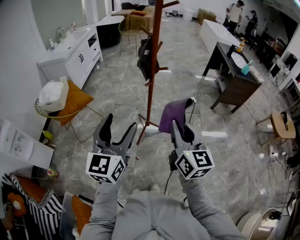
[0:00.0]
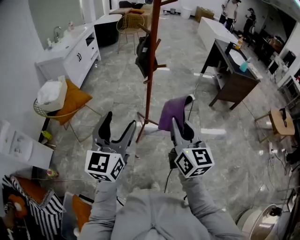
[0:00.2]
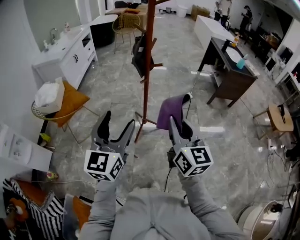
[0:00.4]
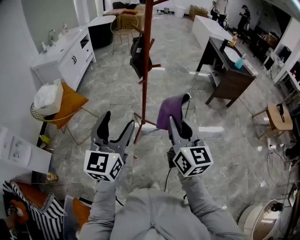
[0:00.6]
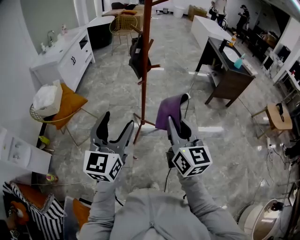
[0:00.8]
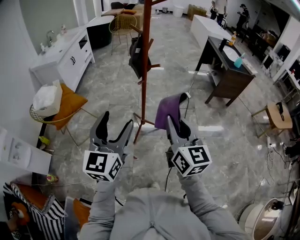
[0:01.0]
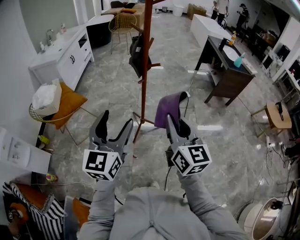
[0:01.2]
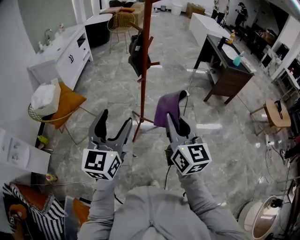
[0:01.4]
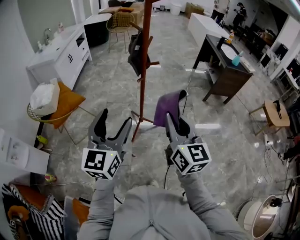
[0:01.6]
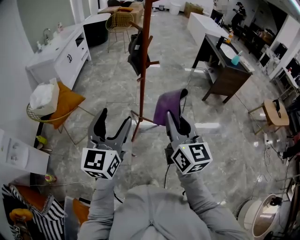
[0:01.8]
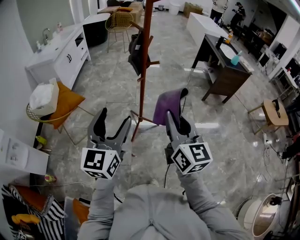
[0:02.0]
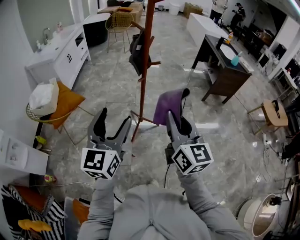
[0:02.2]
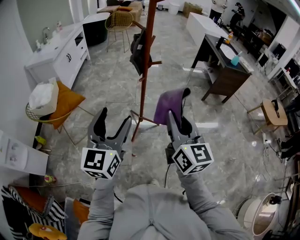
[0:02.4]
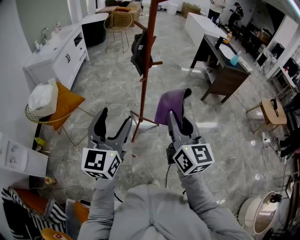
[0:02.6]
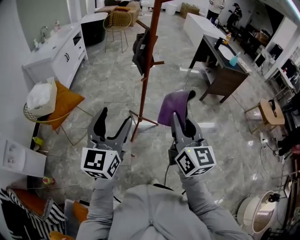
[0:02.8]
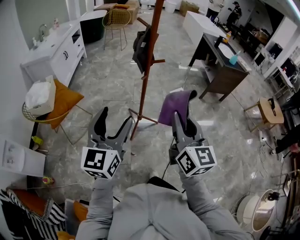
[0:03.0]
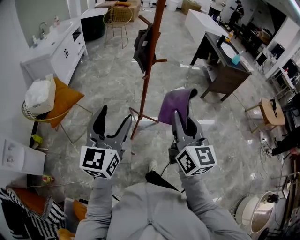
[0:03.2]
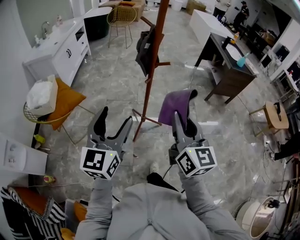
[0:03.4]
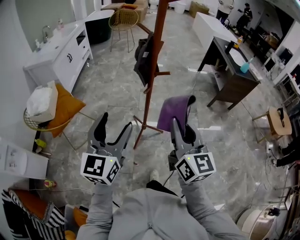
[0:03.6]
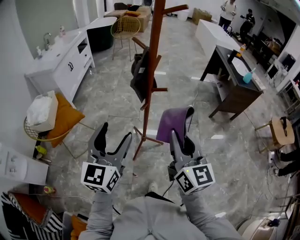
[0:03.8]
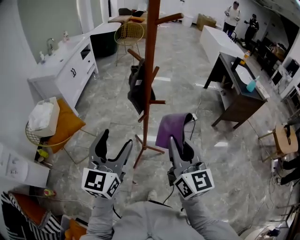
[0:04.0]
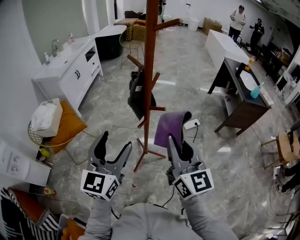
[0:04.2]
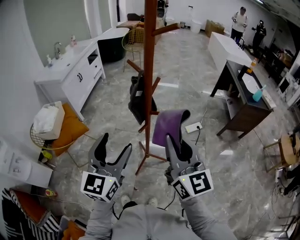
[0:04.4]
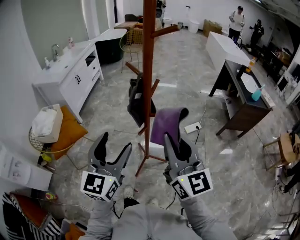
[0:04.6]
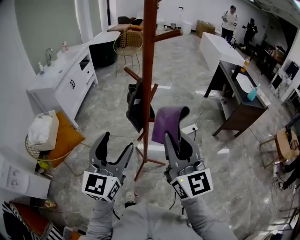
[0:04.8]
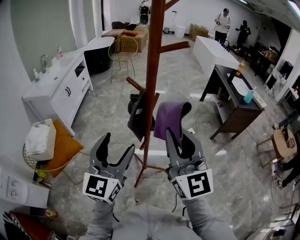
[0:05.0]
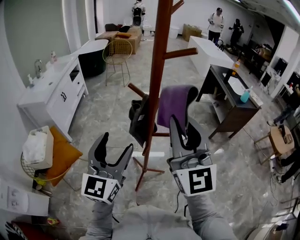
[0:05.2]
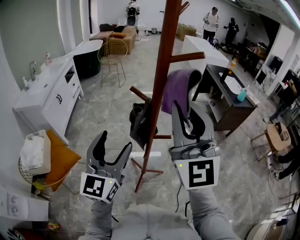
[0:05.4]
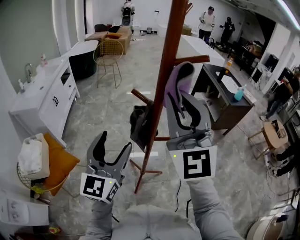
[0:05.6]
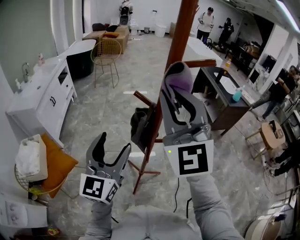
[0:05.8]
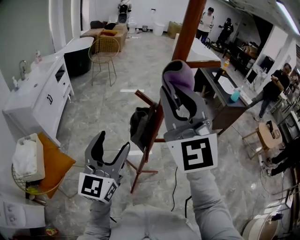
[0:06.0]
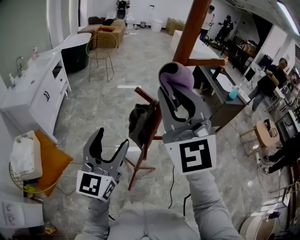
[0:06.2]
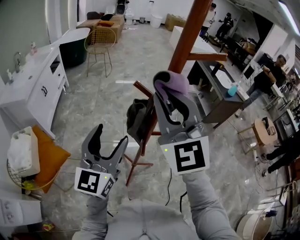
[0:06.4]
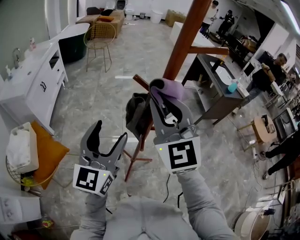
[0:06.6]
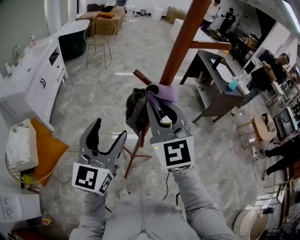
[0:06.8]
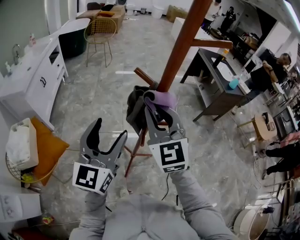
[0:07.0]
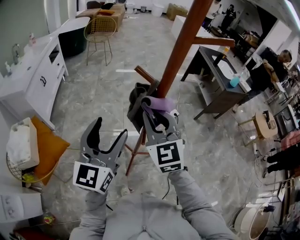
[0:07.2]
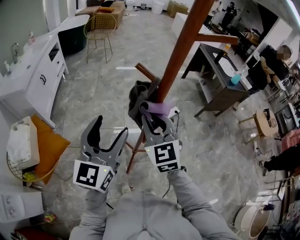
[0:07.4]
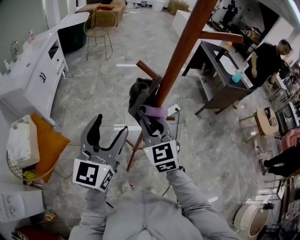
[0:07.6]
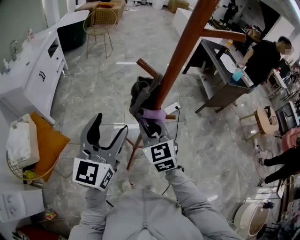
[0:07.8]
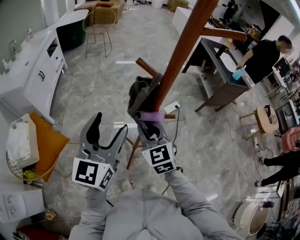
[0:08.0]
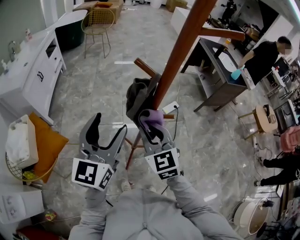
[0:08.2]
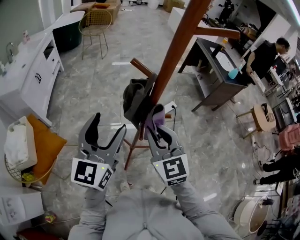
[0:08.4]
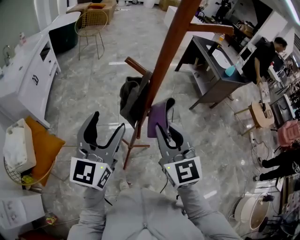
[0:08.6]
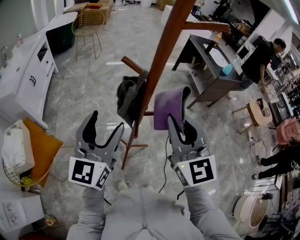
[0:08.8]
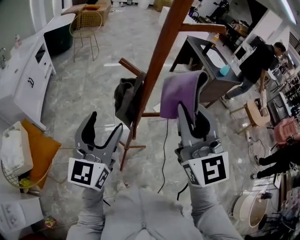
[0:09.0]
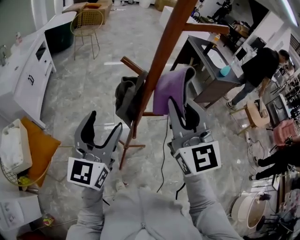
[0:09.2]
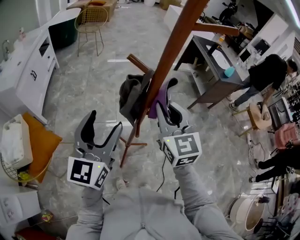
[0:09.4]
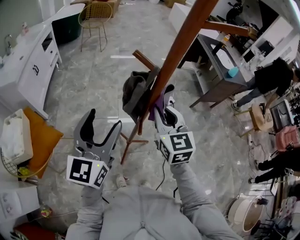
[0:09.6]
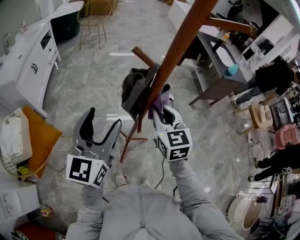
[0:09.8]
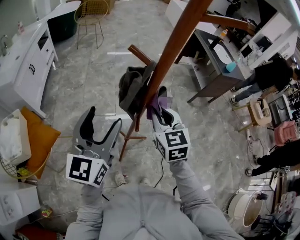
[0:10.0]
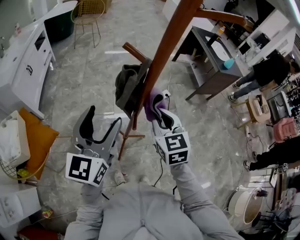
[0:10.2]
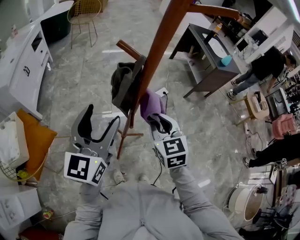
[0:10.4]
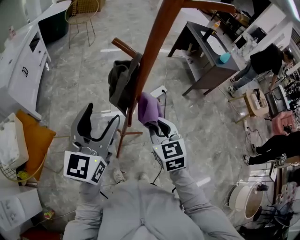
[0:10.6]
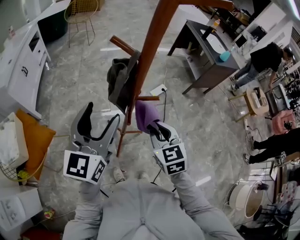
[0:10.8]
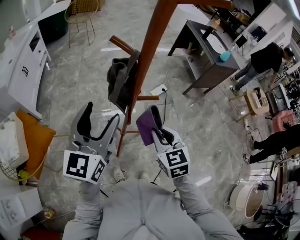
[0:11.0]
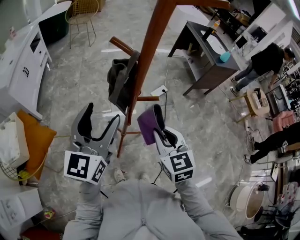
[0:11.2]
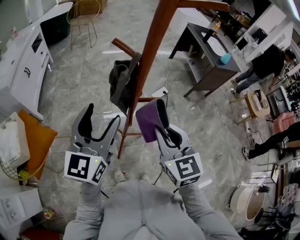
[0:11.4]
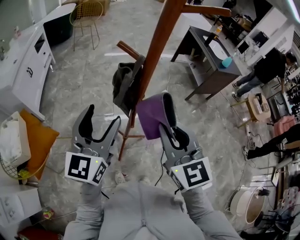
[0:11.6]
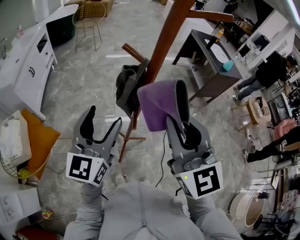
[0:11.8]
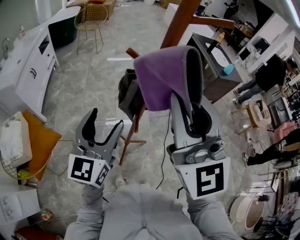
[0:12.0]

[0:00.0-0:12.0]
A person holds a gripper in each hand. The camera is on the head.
0:00.0 to 0:01.6: The grippers stay close to where they were, moving slightly.
0:01.6 to 0:03.0: The left gripper changes place by roughly 5 cm.
0:03.0 to 0:04.4: Both grippers move forward, approximately 20 cm.
0:04.4 to 0:06.0: The left gripper shifts roughly 15 cm forward and to the left; the right gripper moves forward, upward and to the left, roughly 25 cm, and rolls counterclockwise, seen from behind, by approximately 40 degrees.
0:06.0 to 0:07.6: The right gripper shifts roughly 30 cm downward, and swivels some 30 degrees.
0:07.6 to 0:09.0: The right gripper goes about 20 cm upward and to the right, and turns by roughly 30 degrees.
0:09.0 to 0:10.4: The right gripper heads downward, covering roughly 25 cm, and points its fingers some 30 degrees further downward.
0:10.4 to 0:12.0: The right gripper heads upward, covering about 30 cm, and tips its fingers upward by approximately 40 degrees.

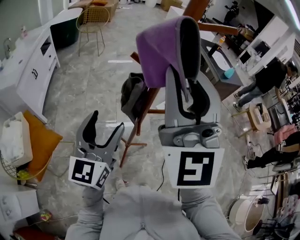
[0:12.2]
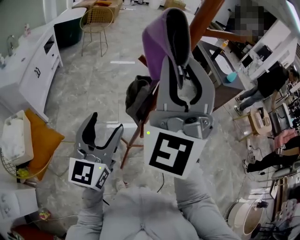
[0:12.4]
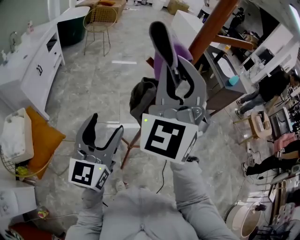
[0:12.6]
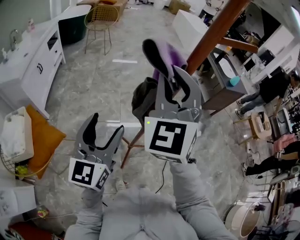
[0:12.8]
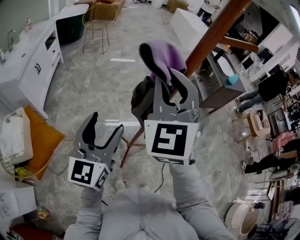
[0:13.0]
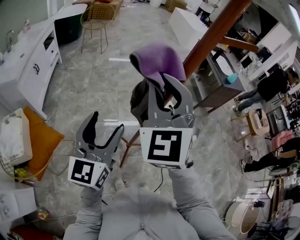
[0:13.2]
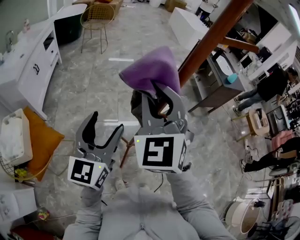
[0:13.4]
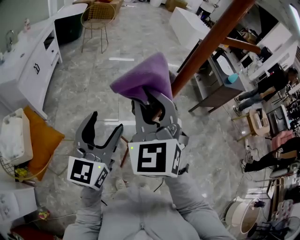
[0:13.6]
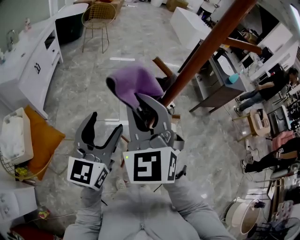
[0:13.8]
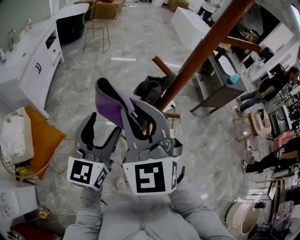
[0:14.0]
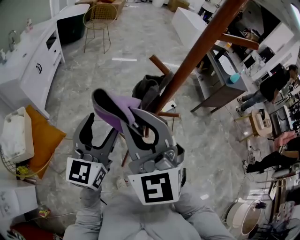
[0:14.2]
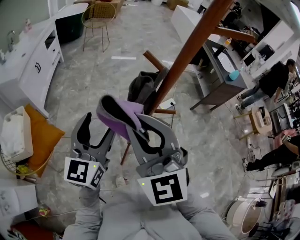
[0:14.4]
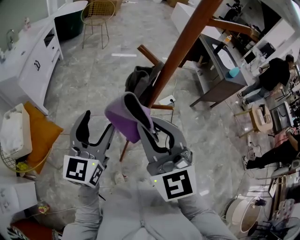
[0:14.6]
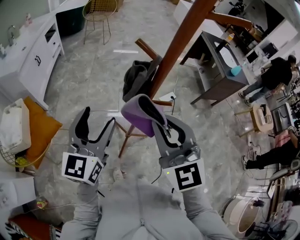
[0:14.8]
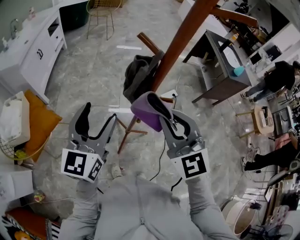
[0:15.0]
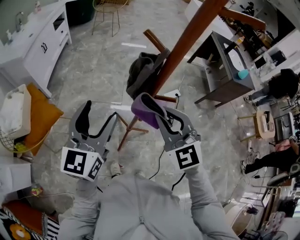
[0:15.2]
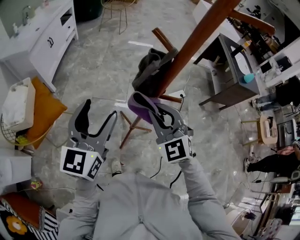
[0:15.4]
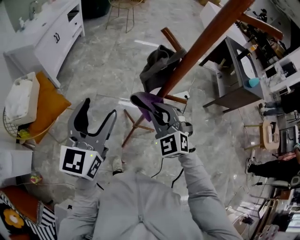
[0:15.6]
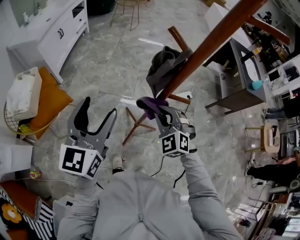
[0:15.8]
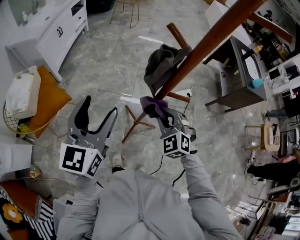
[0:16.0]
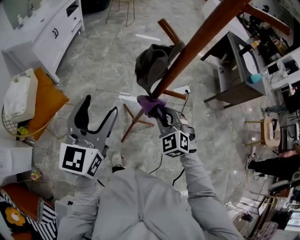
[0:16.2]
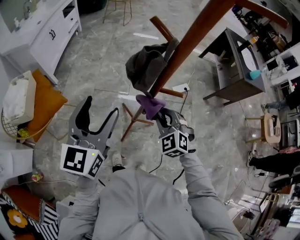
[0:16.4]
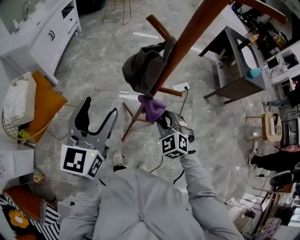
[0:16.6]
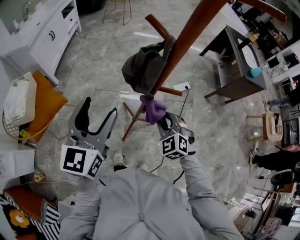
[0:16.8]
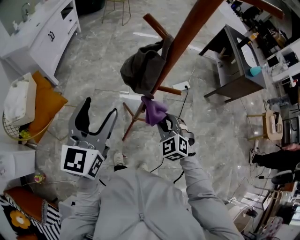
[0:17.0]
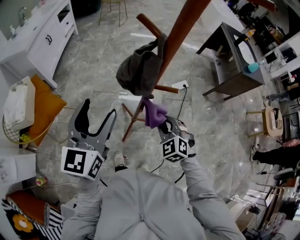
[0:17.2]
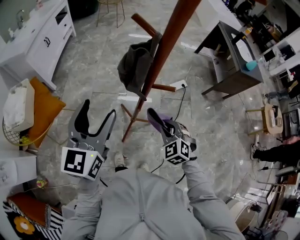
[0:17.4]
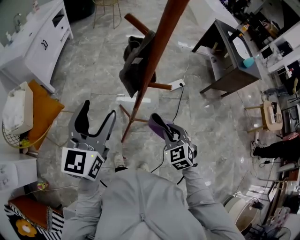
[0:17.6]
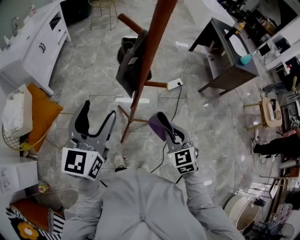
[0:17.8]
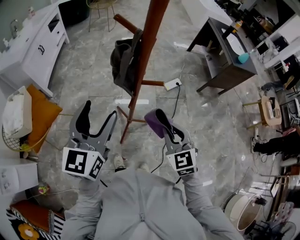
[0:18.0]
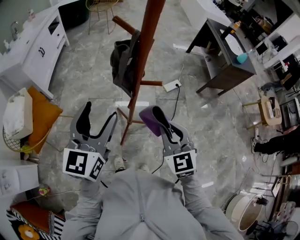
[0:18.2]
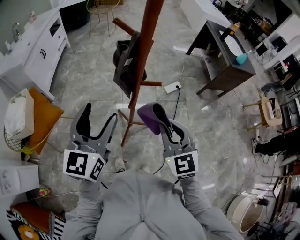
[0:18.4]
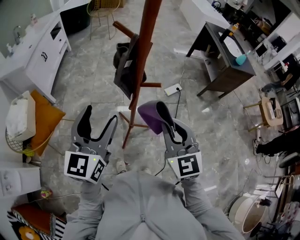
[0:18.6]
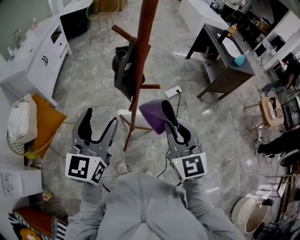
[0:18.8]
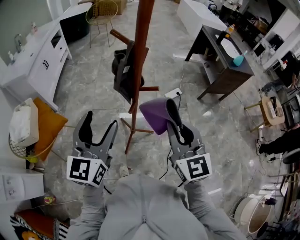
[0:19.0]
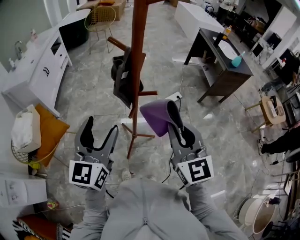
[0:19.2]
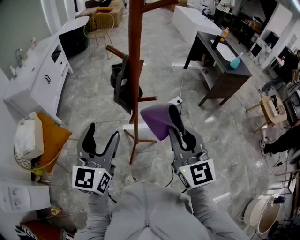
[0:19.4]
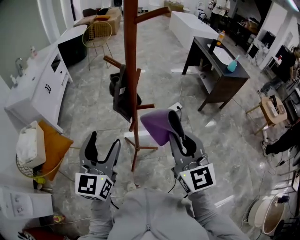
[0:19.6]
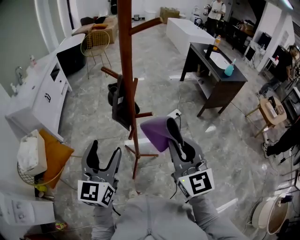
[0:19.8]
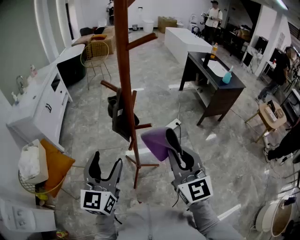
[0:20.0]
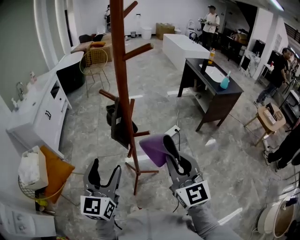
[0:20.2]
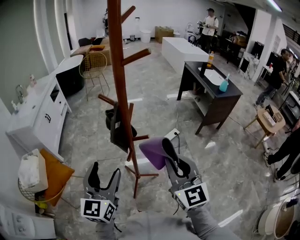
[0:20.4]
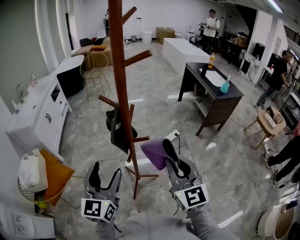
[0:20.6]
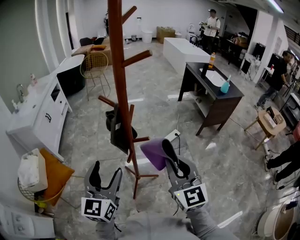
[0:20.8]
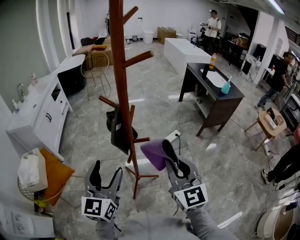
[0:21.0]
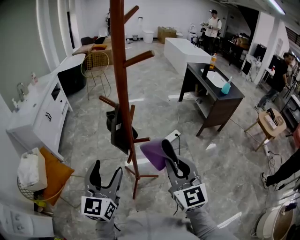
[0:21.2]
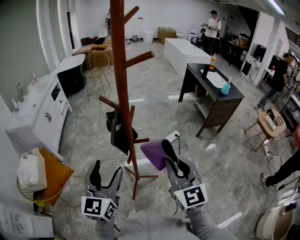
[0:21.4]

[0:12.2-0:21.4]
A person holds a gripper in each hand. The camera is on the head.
0:12.2 to 0:13.8: The left gripper heads to the left, covering roughly 5 cm; the right gripper heads downward and to the left, covering about 20 cm, and turns by roughly 30 degrees.
0:13.8 to 0:15.2: The right gripper moves to the right and downward, approximately 20 cm.
0:15.2 to 0:16.8: The right gripper goes roughly 20 cm downward, and rotates some 20 degrees.
0:16.8 to 0:18.4: The left gripper goes about 5 cm to the right. Meanwhile the right gripper is displaced upward and backward by about 15 cm, and swivels some 40 degrees.
0:18.4 to 0:19.8: The right gripper goes roughly 10 cm upward.
0:19.8 to 0:21.4: The grippers move only a little.

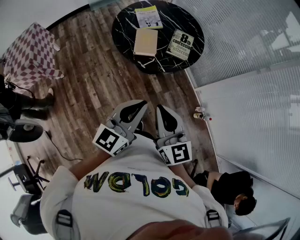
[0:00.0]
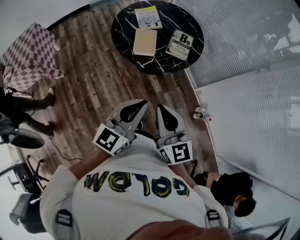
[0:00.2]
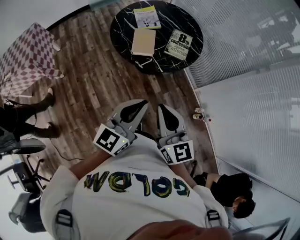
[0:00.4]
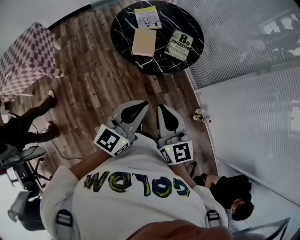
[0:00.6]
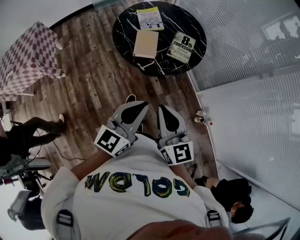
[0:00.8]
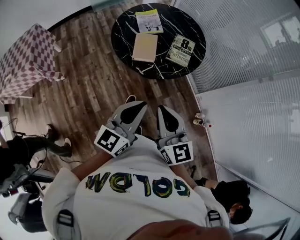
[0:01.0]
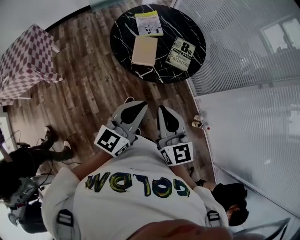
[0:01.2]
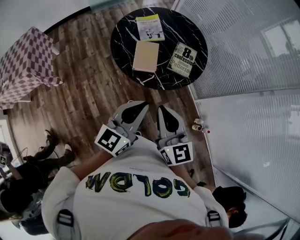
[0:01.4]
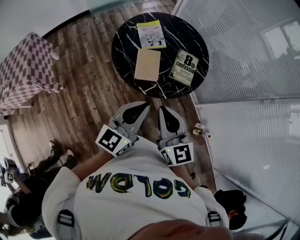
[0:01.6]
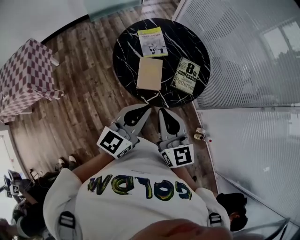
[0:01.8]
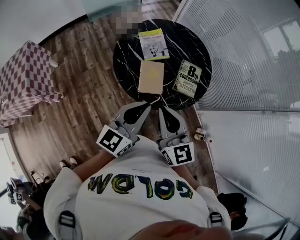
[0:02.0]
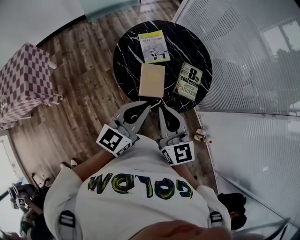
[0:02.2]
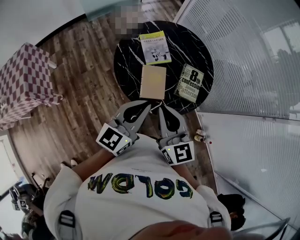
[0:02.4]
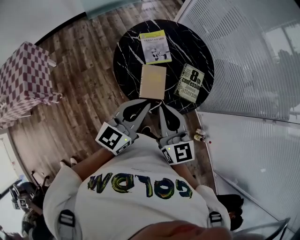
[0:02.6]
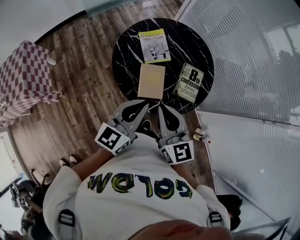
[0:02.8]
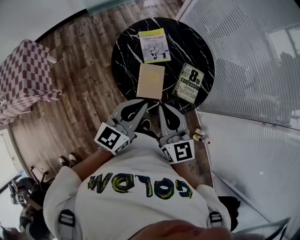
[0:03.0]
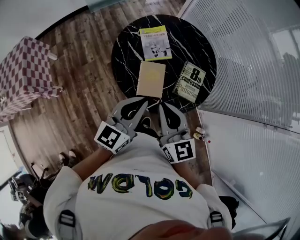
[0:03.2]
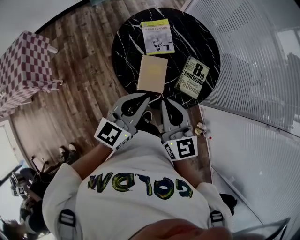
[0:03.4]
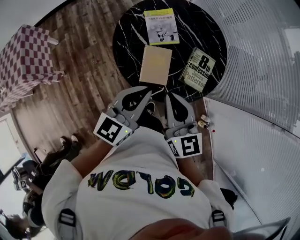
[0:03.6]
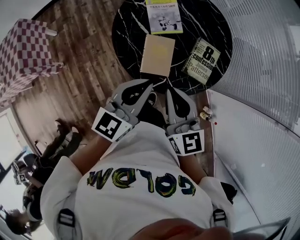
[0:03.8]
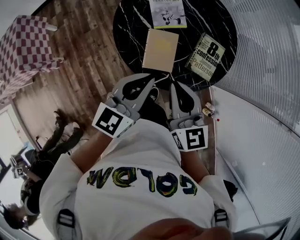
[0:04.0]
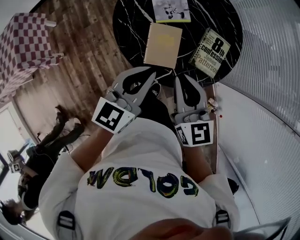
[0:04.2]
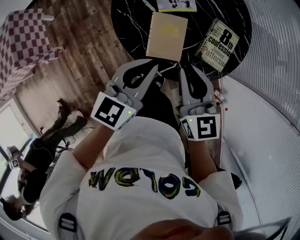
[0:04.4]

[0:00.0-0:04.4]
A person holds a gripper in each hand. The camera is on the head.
0:00.0 to 0:01.4: The two grippers go roughly 15 cm forward.
0:01.4 to 0:03.0: The right gripper moves forward, about 20 cm. The left gripper goes roughly 20 cm forward and to the left.
0:03.0 to 0:04.4: The left gripper moves downward, some 10 cm, while the right gripper is displaced downward and forward by some 15 cm.
